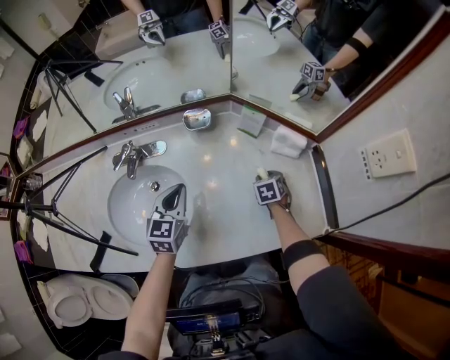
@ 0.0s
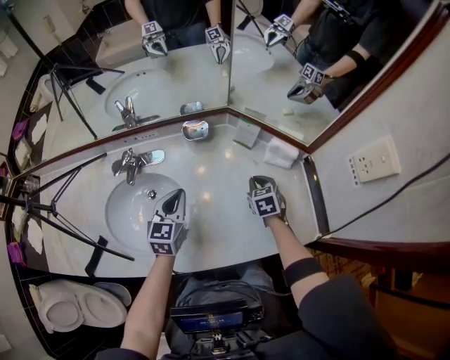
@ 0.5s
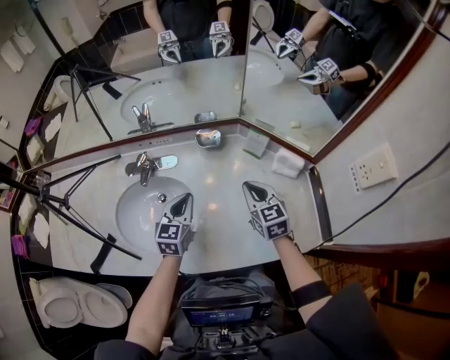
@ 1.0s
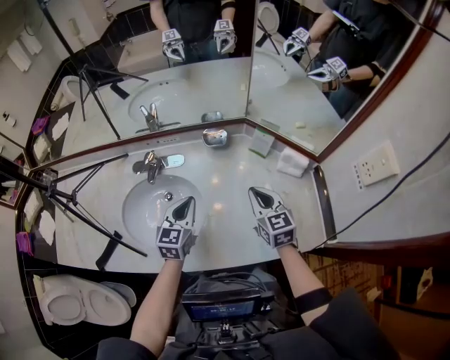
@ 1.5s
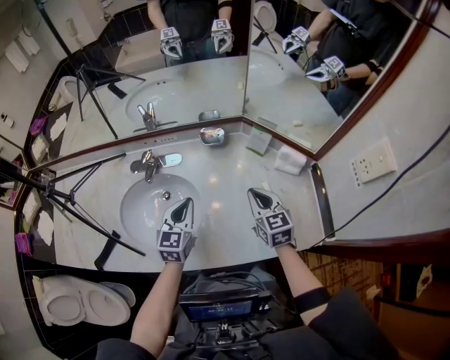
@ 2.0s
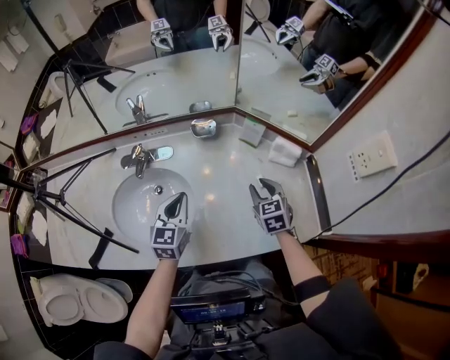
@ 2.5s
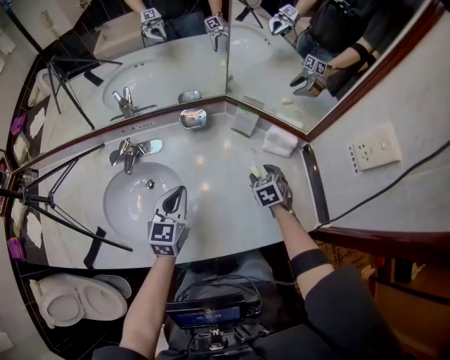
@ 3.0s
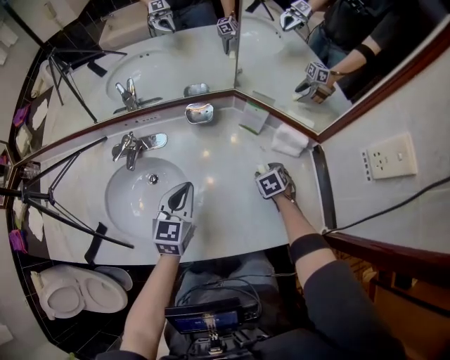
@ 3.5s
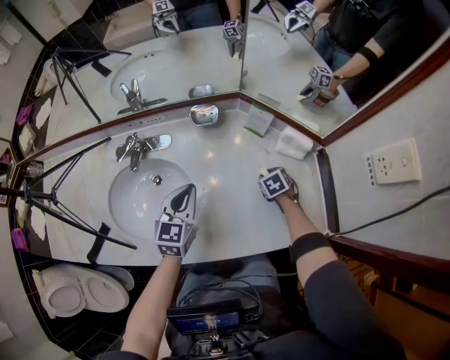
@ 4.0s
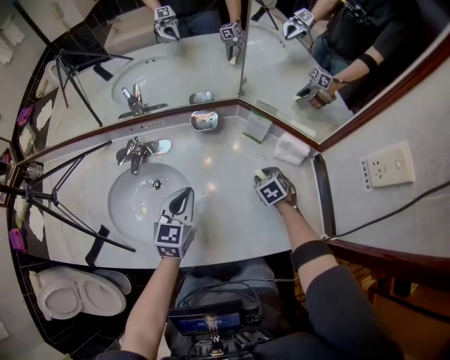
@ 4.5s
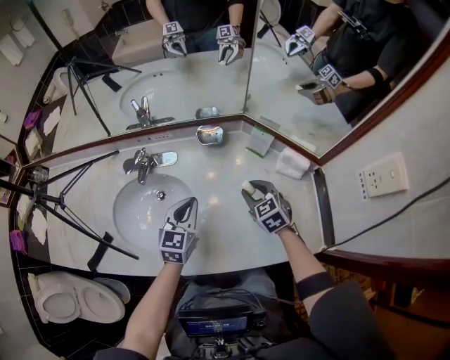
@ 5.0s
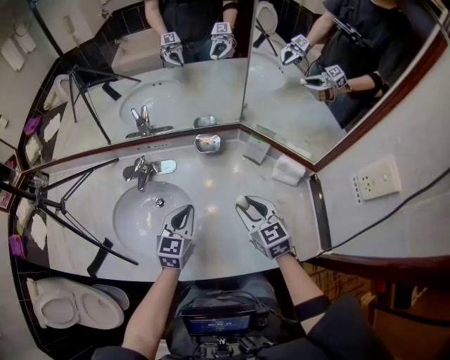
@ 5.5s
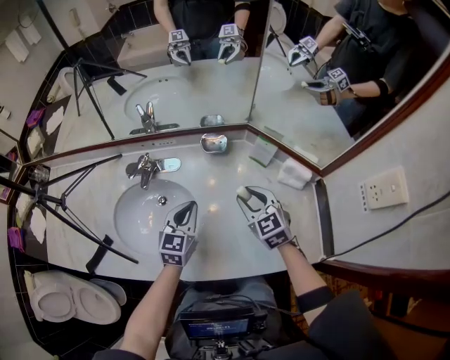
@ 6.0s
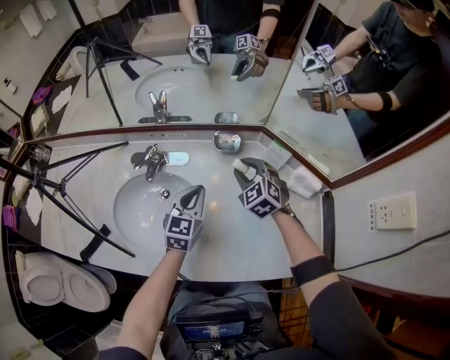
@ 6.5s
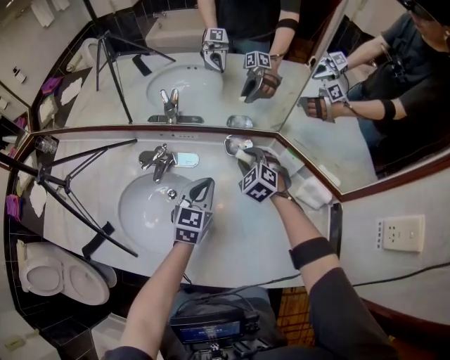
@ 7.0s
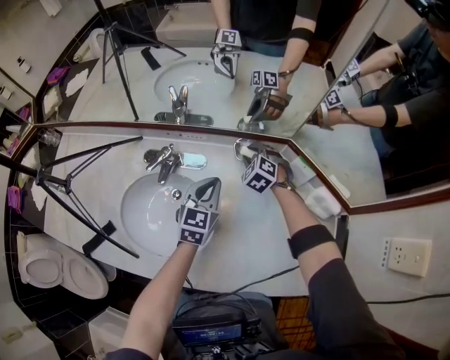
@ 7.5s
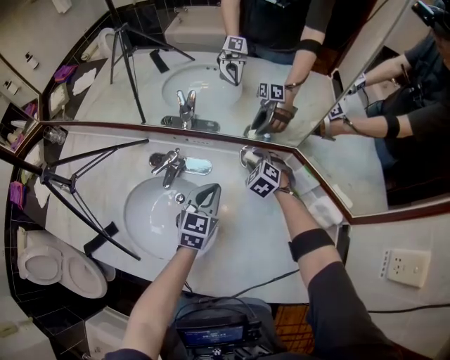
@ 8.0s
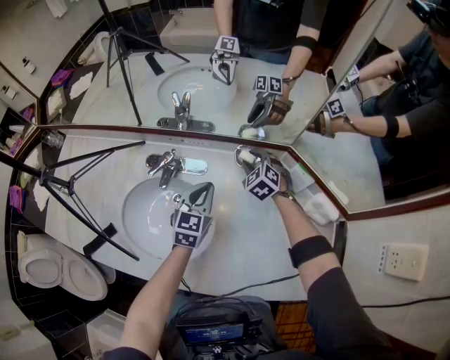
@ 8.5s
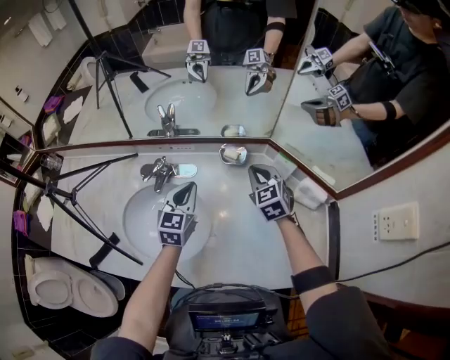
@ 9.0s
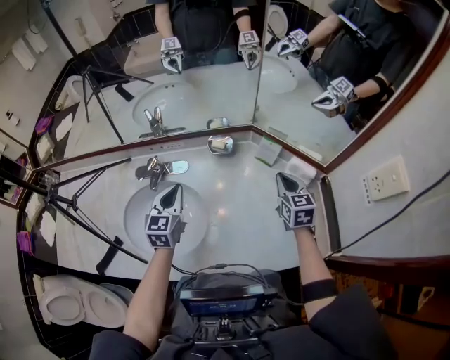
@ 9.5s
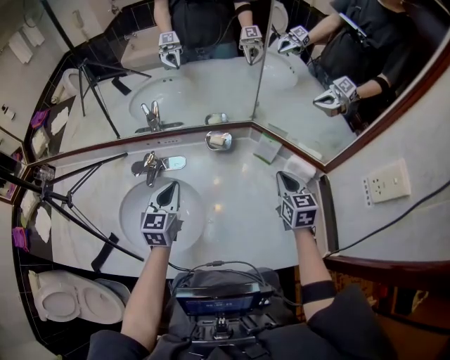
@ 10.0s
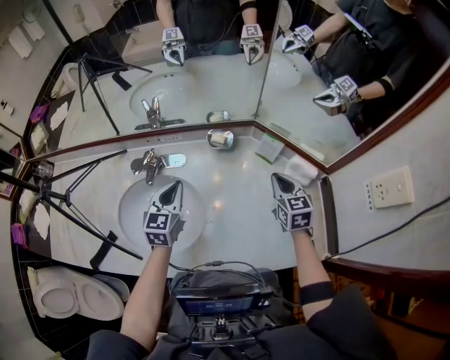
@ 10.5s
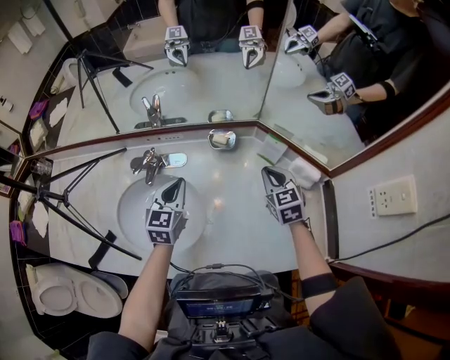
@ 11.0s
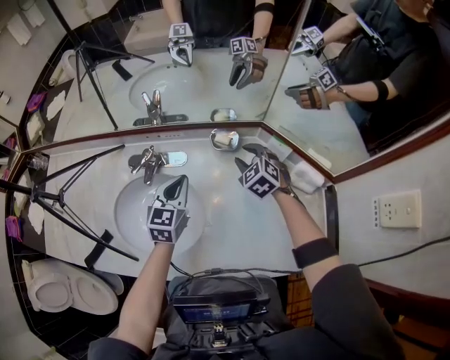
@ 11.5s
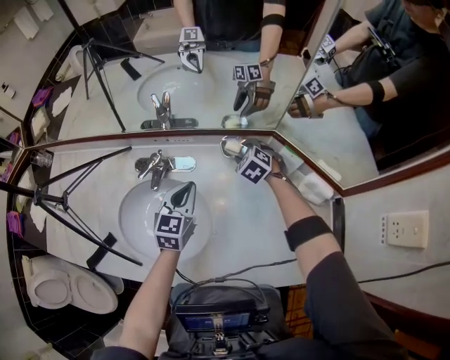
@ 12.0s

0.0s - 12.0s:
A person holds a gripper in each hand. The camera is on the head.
0.0s - 2.0s: The right gripper heads upward and to the left, covering some 25 cm, tips its fingers upward by roughly 40 degrees, and closes up. Meanwhile the left gripper changes place by approximately 5 cm.
2.0s - 4.0s: The left gripper moves roughly 5 cm. The right gripper shifts about 25 cm downward, tilts its fingers roughly 40 degrees downward, and opens up.
4.0s - 6.0s: The right gripper heads upward and to the left, covering roughly 25 cm, and points its fingers some 40 degrees further upward.
6.0s - 8.0s: The right gripper is displaced forward and downward by approximately 25 cm, and changes its angle by about 40 degrees, while the left gripper moves forward, some 10 cm.
8.0s - 10.0s: The left gripper moves backward and upward, roughly 10 cm; the right gripper goes approximately 30 cm to the right, backward and upward, rolls clockwise, seen from behind, by roughly 60 degrees, and closes up.
10.0s - 12.0s: The left gripper shifts by about 5 cm, while the right gripper heads to the left, forward and downward, covering some 30 cm, swivels about 60 degrees, and opens its fingers.

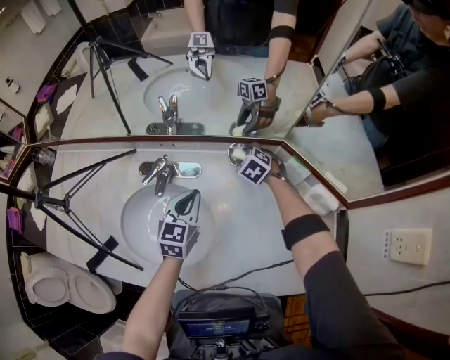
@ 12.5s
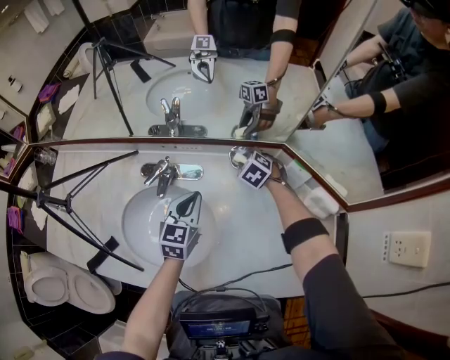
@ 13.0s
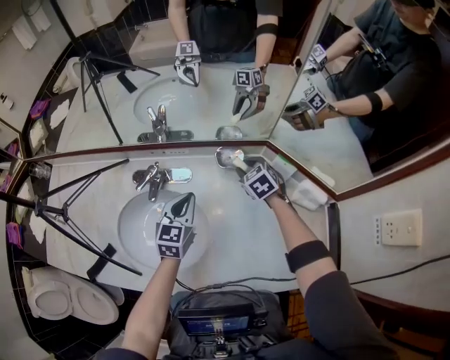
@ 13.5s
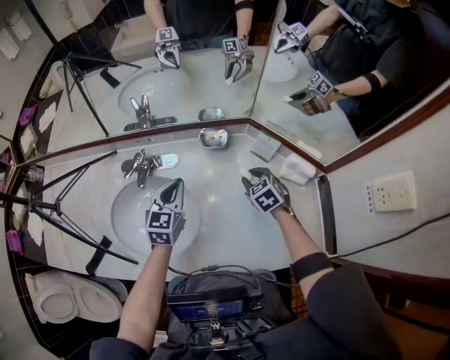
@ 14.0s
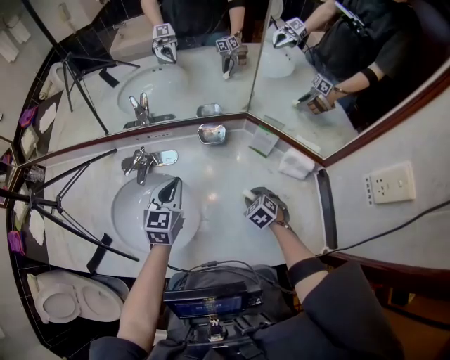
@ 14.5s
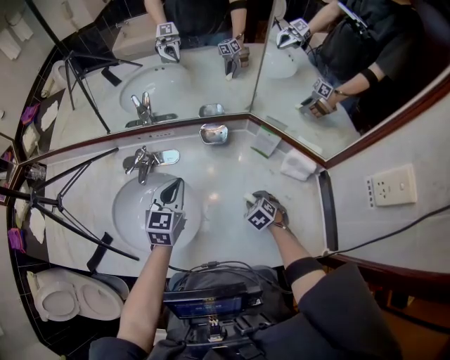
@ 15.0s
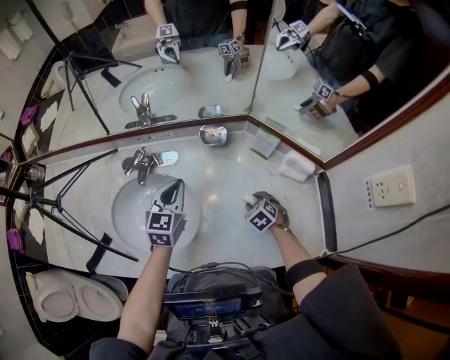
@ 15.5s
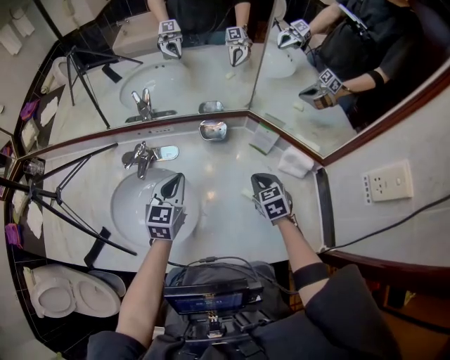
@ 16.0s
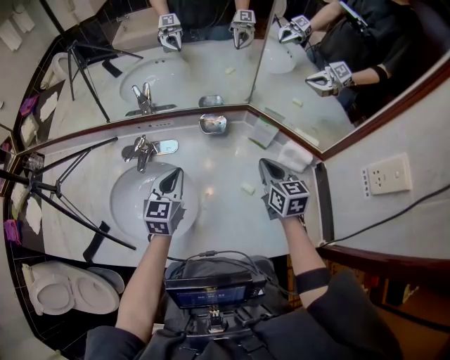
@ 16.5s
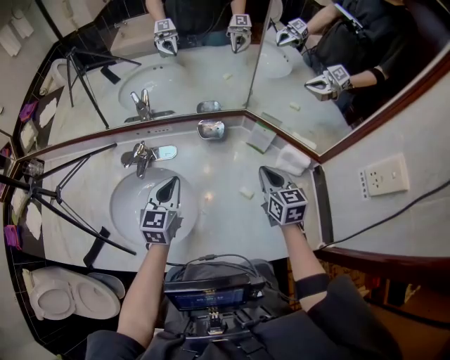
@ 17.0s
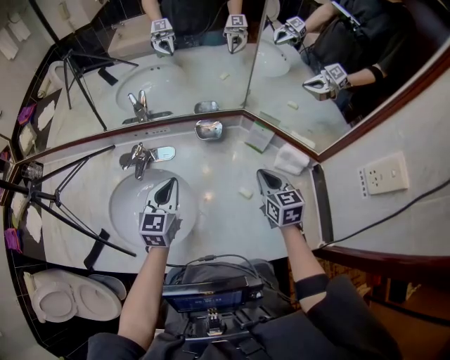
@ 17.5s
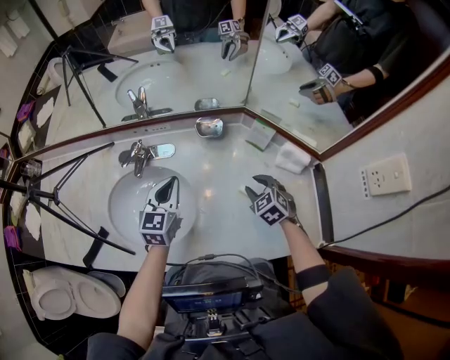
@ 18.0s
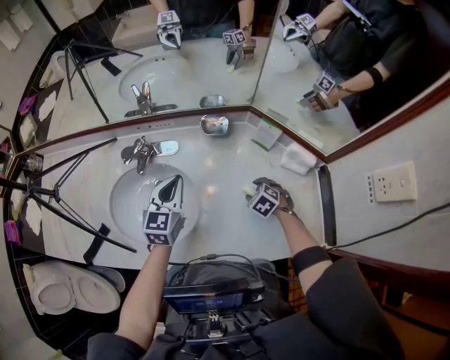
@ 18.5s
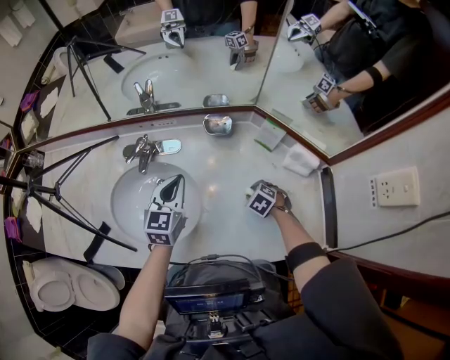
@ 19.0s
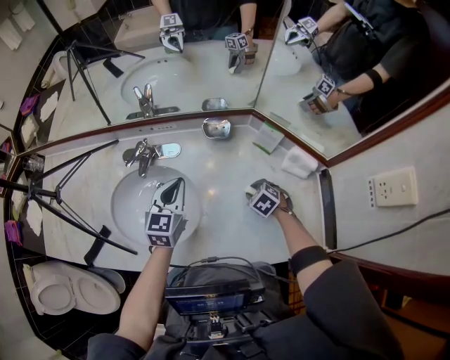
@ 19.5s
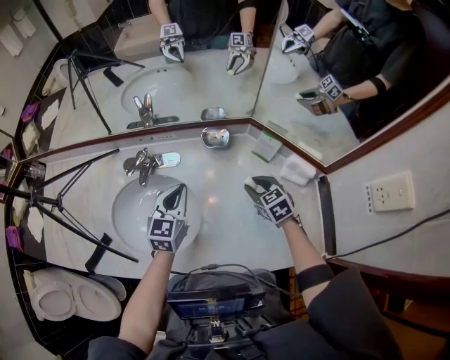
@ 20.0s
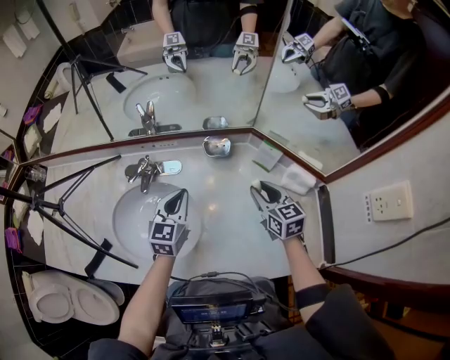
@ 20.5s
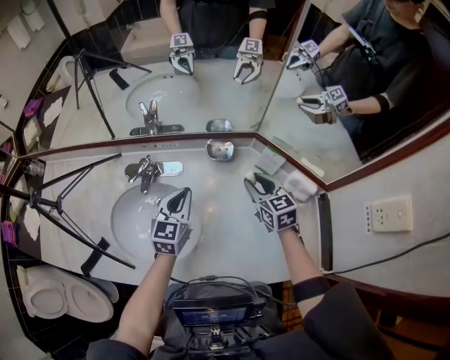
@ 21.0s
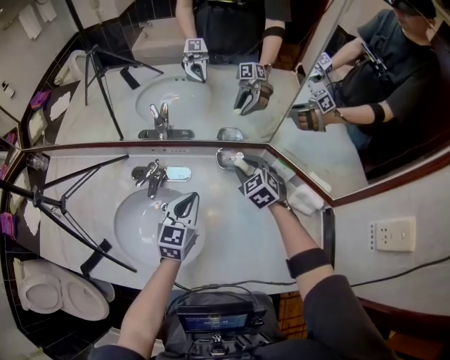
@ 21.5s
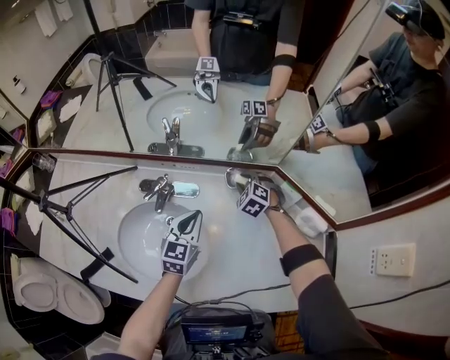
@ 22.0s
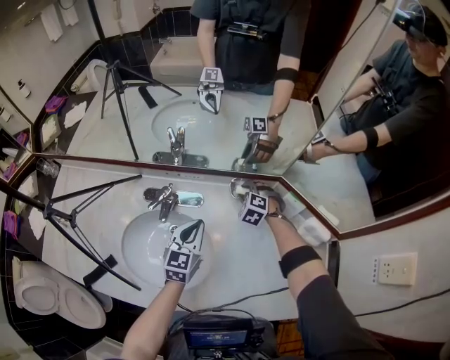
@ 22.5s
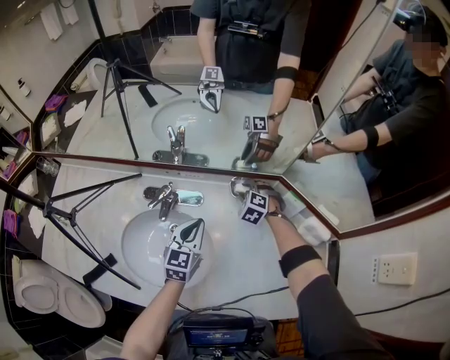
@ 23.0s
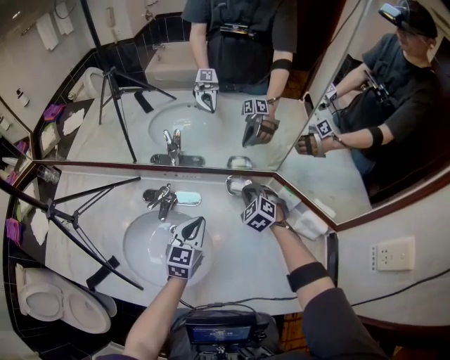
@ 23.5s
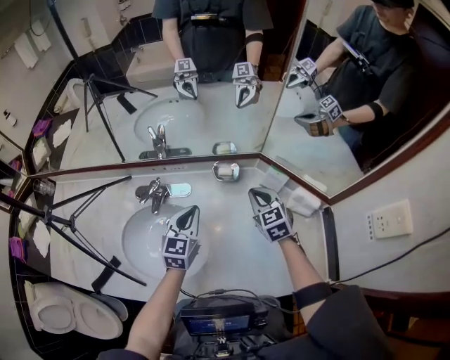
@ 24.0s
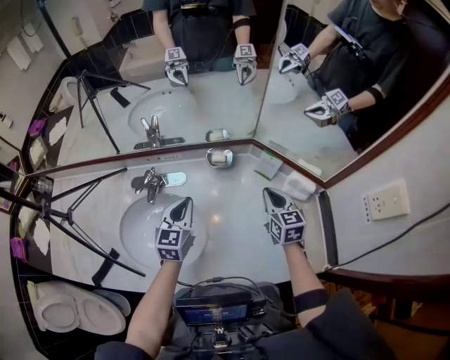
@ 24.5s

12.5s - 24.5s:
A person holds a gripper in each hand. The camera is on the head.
12.5s - 14.5s: The right gripper heads backward, covering about 25 cm.
14.5s - 16.5s: The right gripper travels upward by some 20 cm, angles its fingers upward, by about 40 degrees, and closes up.
16.5s - 18.5s: The right gripper shifts roughly 20 cm downward, tilts its fingers some 50 degrees downward, and opens its fingers.
18.5s - 20.5s: The right gripper heads upward, covering approximately 20 cm, angles its fingers upward, by approximately 40 degrees, and closes.
20.5s - 22.5s: The right gripper goes approximately 25 cm forward, to the left and downward, and twists approximately 60 degrees counterclockwise, seen from behind.
22.5s - 24.5s: The right gripper moves backward, to the right and upward, roughly 25 cm, rolls clockwise, seen from behind, by some 70 degrees, and closes up.

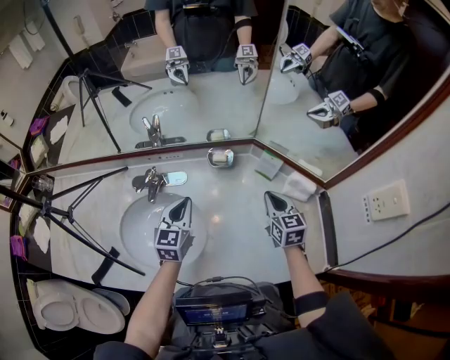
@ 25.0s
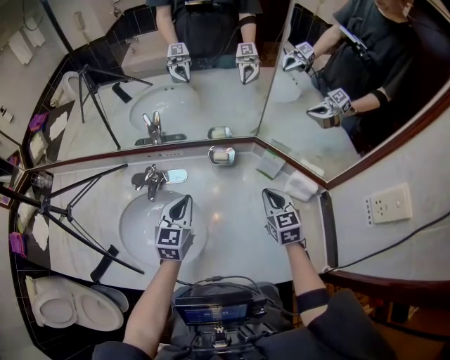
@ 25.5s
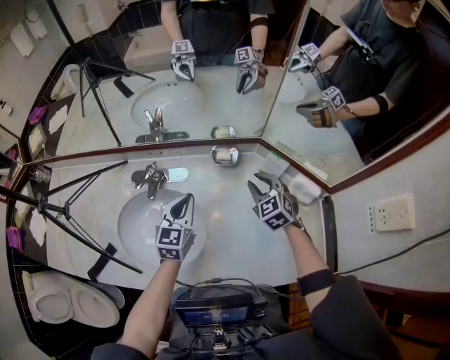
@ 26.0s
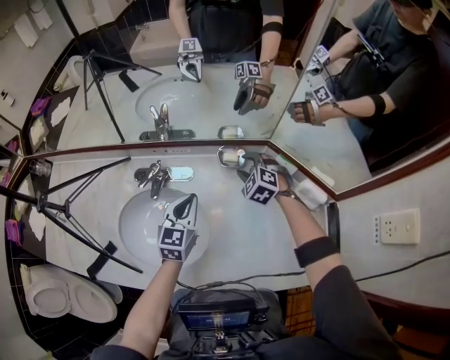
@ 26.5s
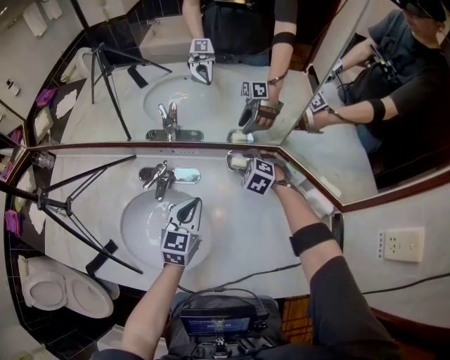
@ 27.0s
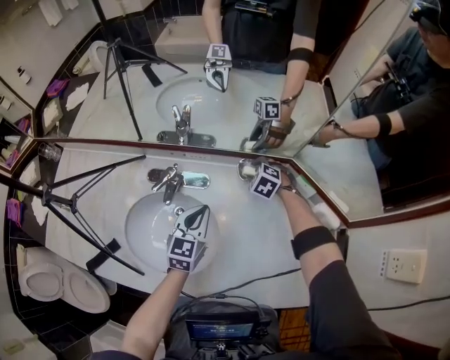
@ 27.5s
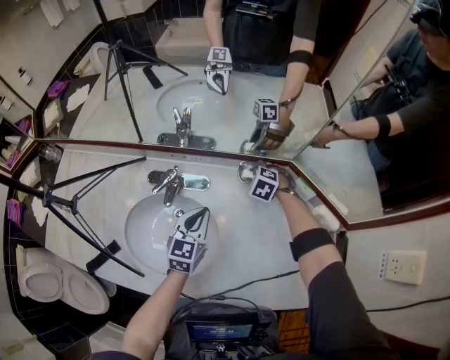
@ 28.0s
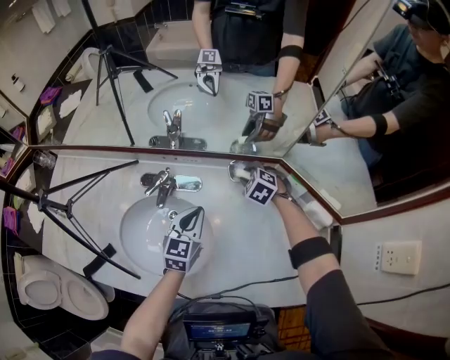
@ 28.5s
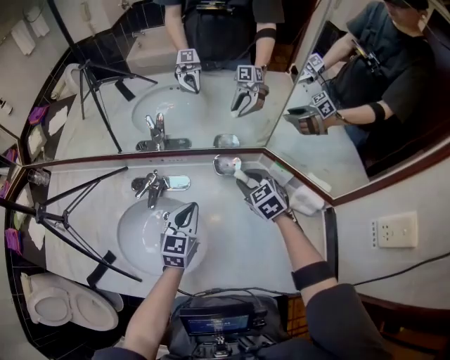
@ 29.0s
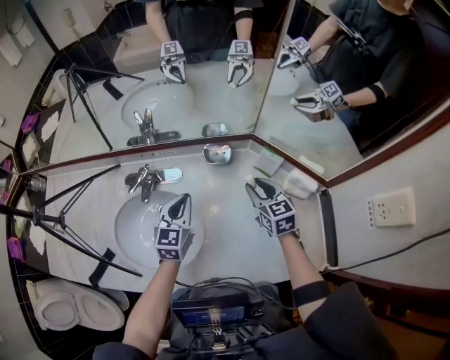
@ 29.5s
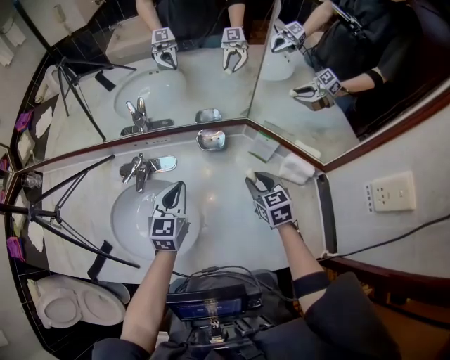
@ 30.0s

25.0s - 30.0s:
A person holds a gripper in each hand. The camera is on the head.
25.0s - 27.5s: The right gripper shifts about 25 cm forward, to the left and downward, angles its fingers downward, by about 40 degrees, and opens its fingers. The left gripper shifts by approximately 5 cm.
27.5s - 30.0s: The right gripper travels backward, to the right and upward by roughly 20 cm, and twists about 50 degrees clockwise, seen from behind.
